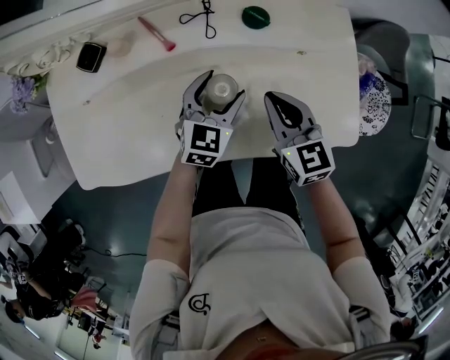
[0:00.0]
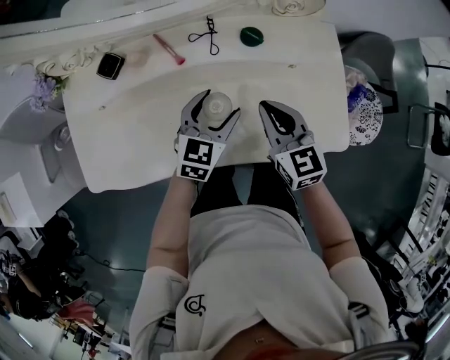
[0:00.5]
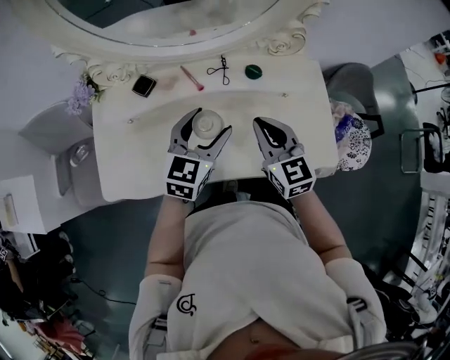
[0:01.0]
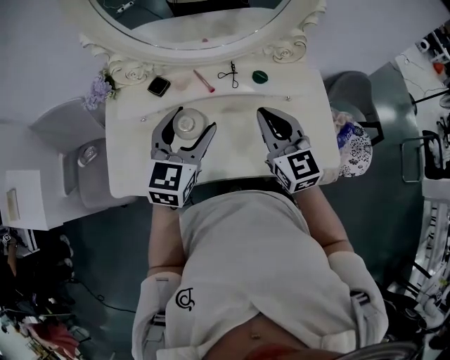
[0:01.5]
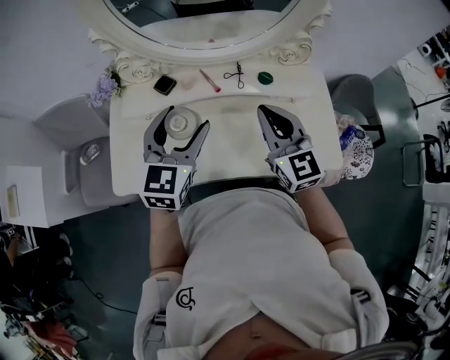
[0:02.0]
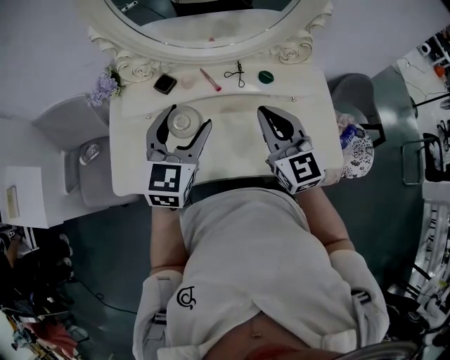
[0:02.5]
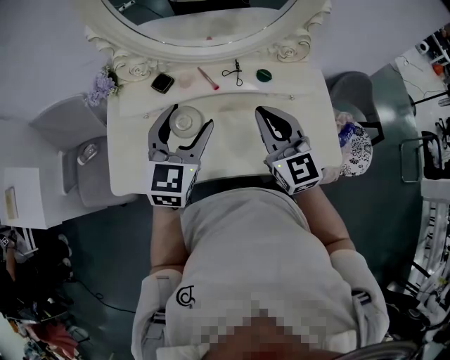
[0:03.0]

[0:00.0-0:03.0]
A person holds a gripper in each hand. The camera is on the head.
0:00.0 to 0:01.5: The left gripper moves upward and to the left, approximately 30 cm; the right gripper heads upward, covering some 20 cm, and changes its angle by about 20 degrees.
0:01.5 to 0:03.0: The grippers make only small movements.

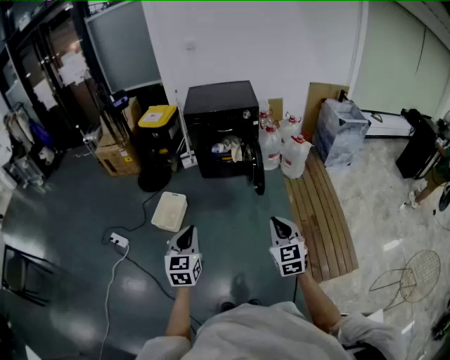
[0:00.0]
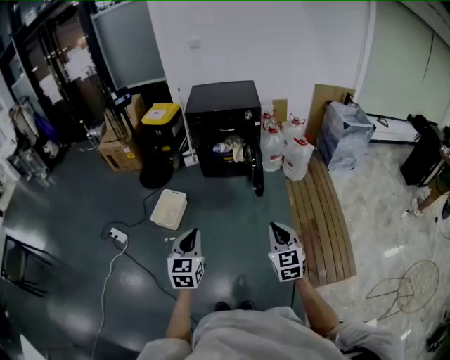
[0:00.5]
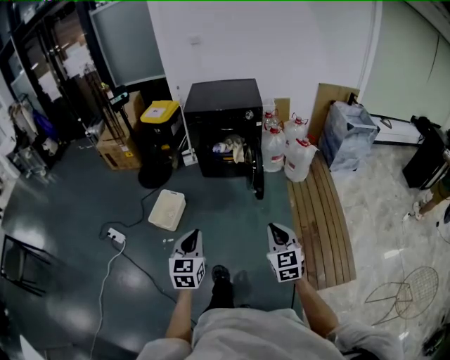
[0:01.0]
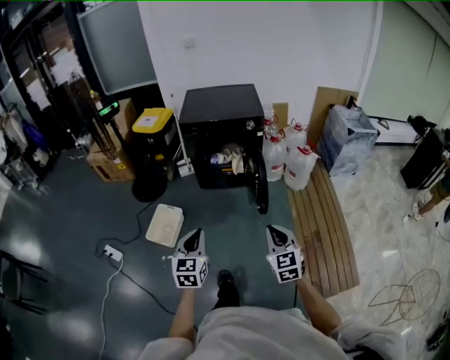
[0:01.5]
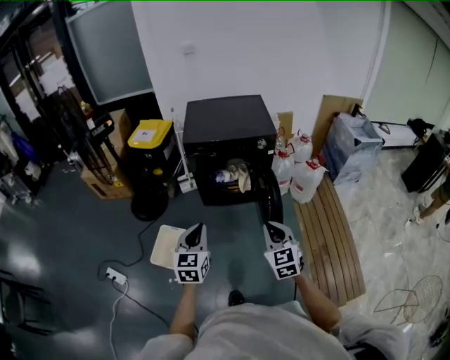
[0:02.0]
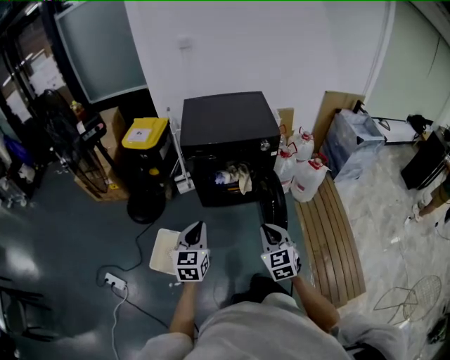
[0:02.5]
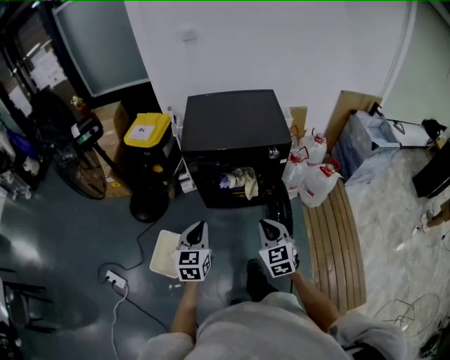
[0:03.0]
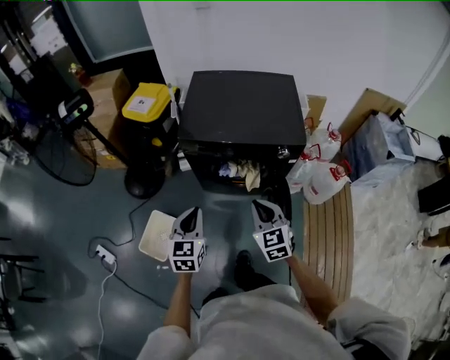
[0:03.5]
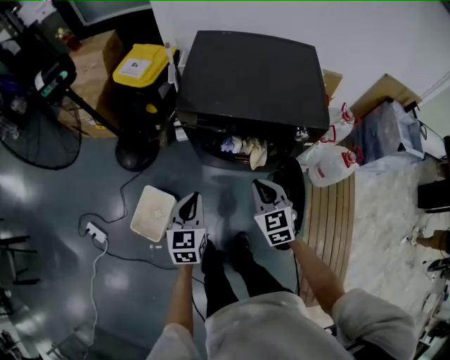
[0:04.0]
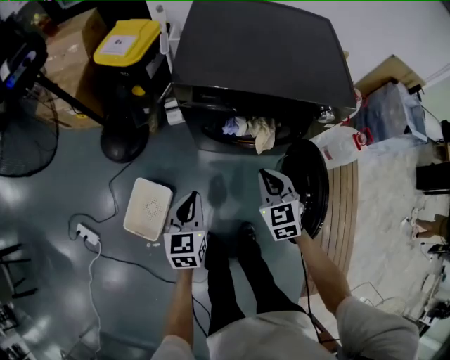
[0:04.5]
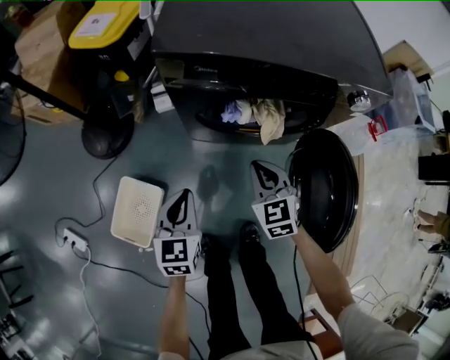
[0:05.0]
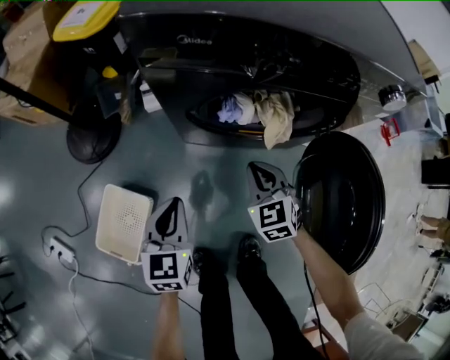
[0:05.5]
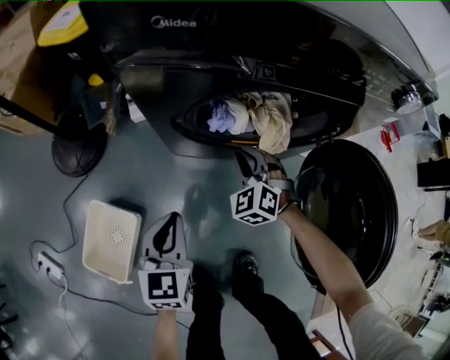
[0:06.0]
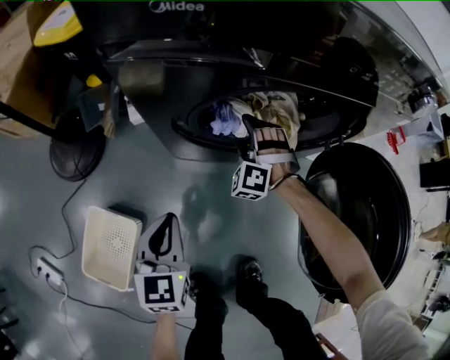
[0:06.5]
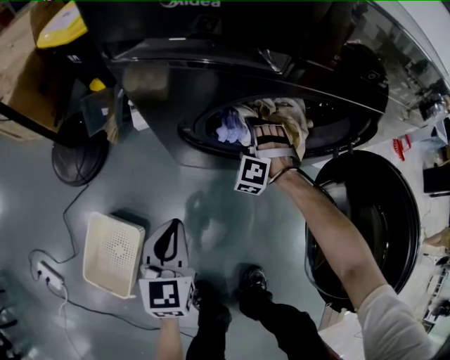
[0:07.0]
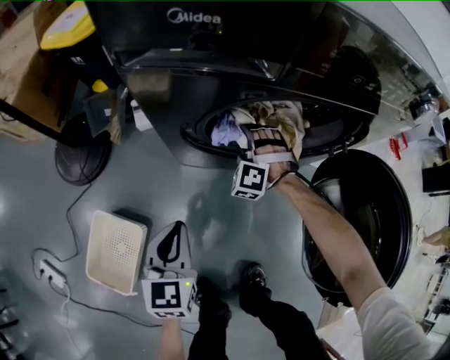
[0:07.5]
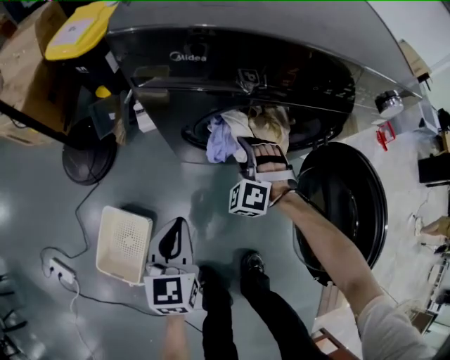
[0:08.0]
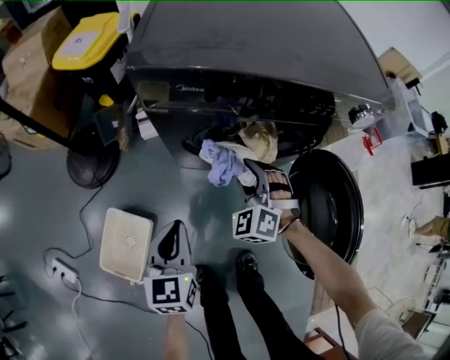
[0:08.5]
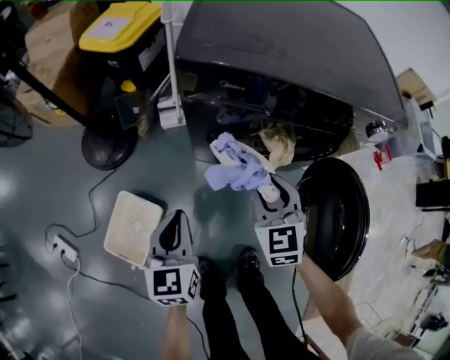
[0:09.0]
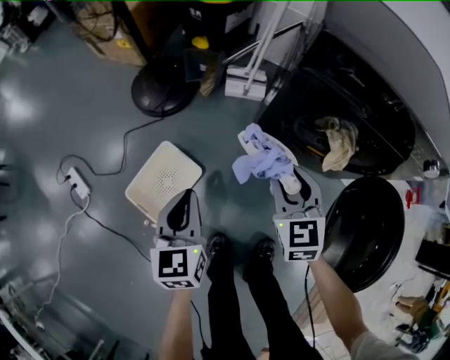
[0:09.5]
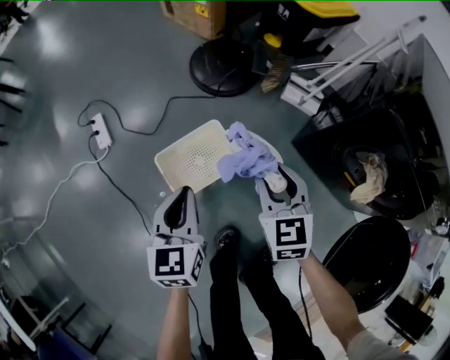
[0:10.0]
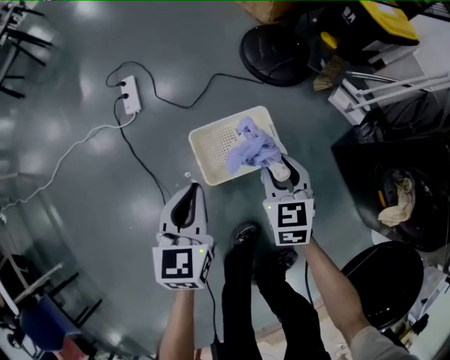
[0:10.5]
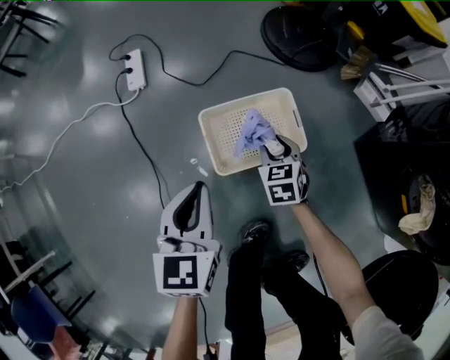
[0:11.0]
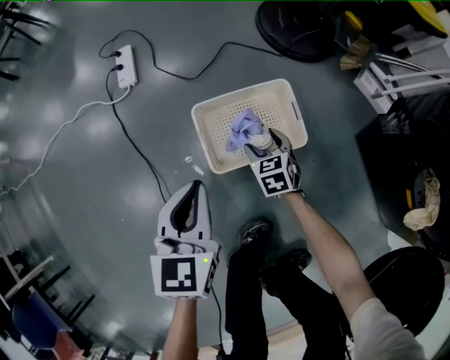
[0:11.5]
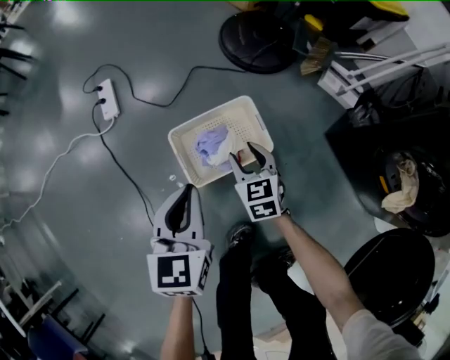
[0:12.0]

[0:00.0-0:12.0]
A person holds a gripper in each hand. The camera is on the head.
0:00.0 to 0:02.0: The grippers both shift forward by approximately 40 cm.
0:02.0 to 0:04.0: The right gripper is displaced forward by some 40 cm. Meanwhile the left gripper is displaced forward and downward by approximately 40 cm.
0:04.0 to 0:06.0: Both grippers move downward, roughly 40 cm. The right gripper swivels roughly 40 degrees.
0:06.0 to 0:08.0: The left gripper is displaced upward by roughly 5 cm. Meanwhile the right gripper rotates about 20 degrees, and opens, then closes again.
0:08.0 to 0:10.0: The right gripper changes place by some 50 cm, and turns by about 60 degrees; the left gripper moves roughly 40 cm, and changes its angle by roughly 40 degrees.
0:10.0 to 0:12.0: The left gripper is displaced downward and to the left by some 15 cm. The right gripper shifts some 30 cm downward and to the left.

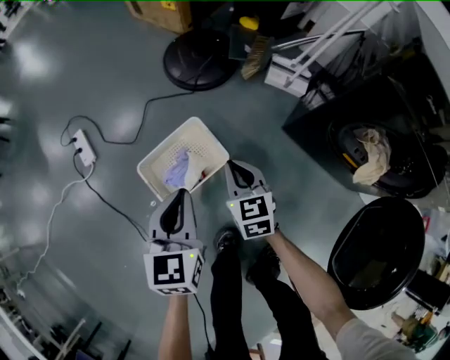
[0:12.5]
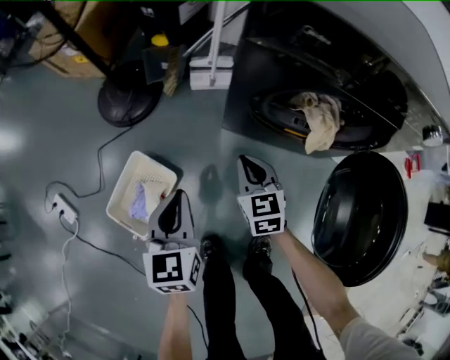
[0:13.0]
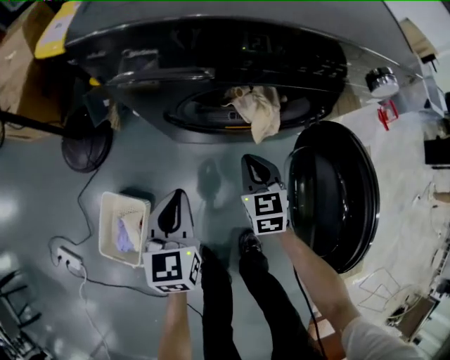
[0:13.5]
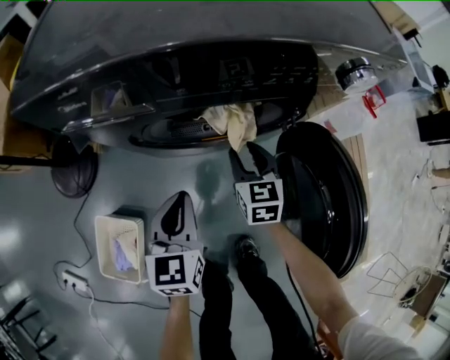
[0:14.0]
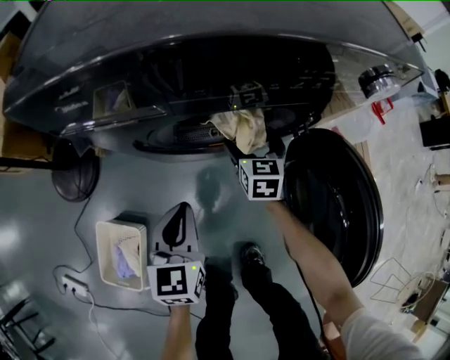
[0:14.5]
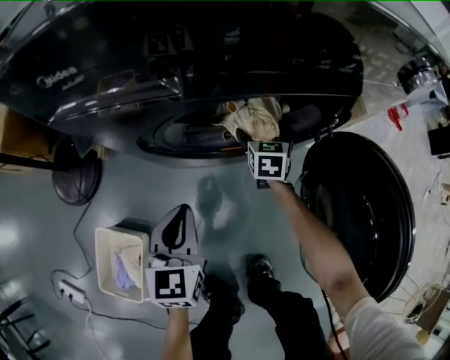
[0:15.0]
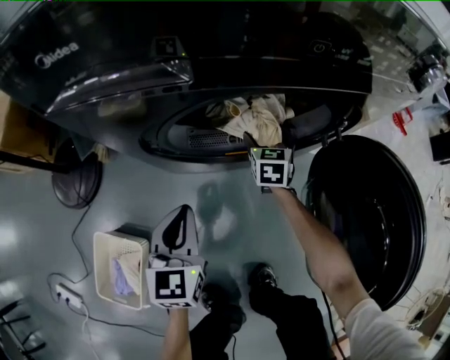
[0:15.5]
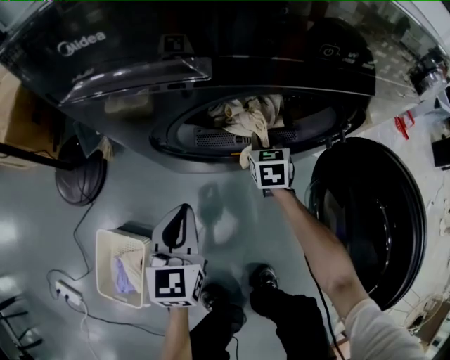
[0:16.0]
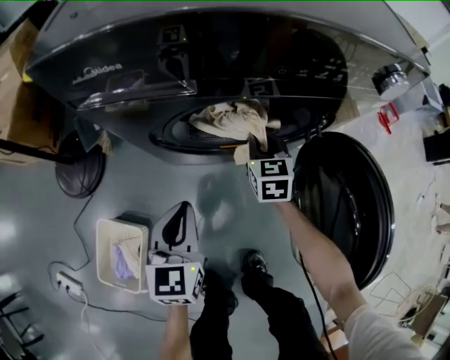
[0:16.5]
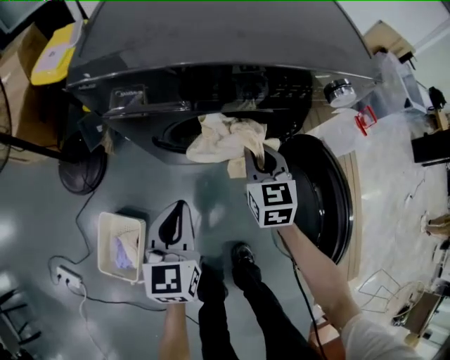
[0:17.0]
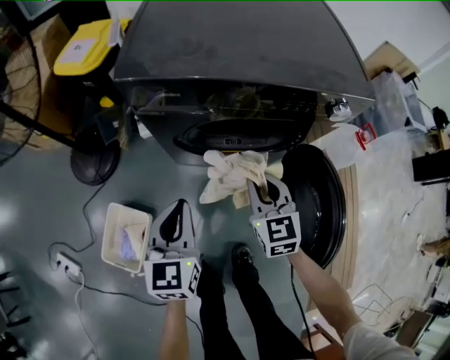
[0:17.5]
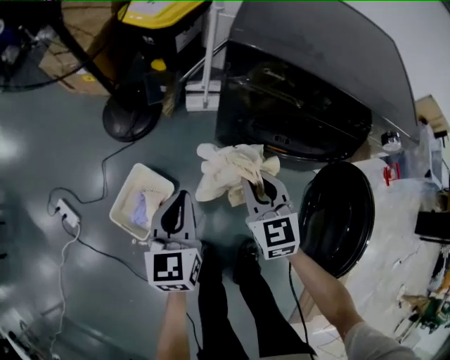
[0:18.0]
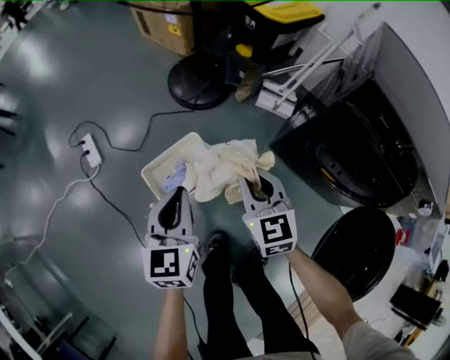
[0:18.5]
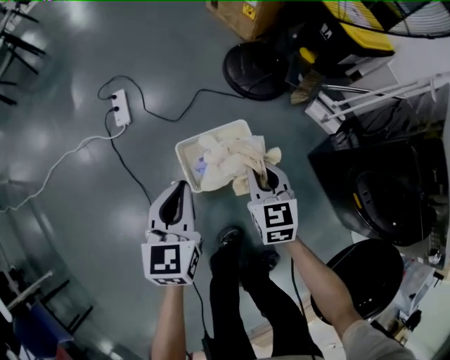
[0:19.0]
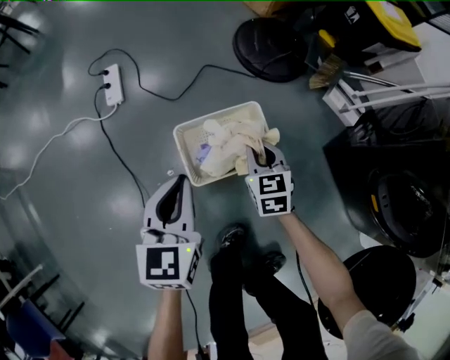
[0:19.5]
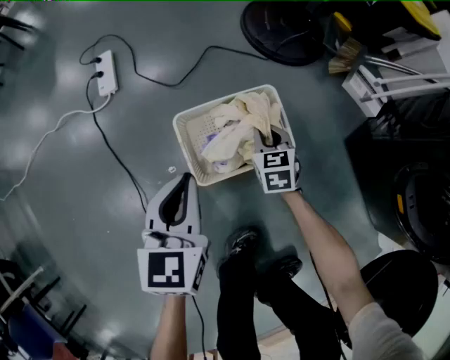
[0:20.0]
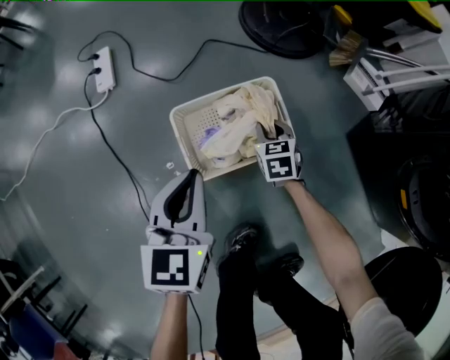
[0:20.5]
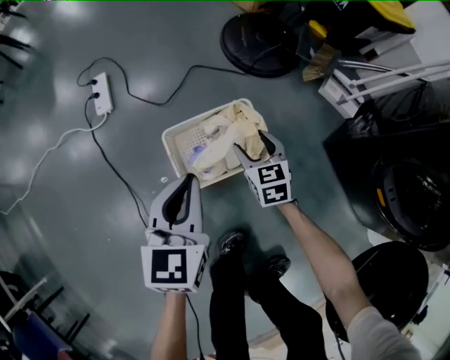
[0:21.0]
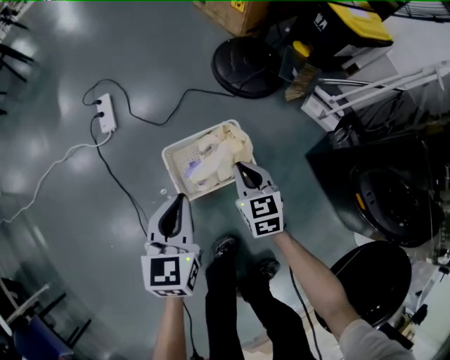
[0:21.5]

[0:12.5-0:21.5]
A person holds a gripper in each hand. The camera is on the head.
0:12.5 to 0:14.5: The pair of grippers is taken some 60 cm. The left gripper rotates some 40 degrees. The right gripper swivels approximately 60 degrees, and opens.
0:14.5 to 0:17.0: The left gripper travels upward by some 10 cm; the right gripper is displaced upward and backward by some 20 cm, and closes its fingers.
0:17.0 to 0:19.5: Both grippers are carried roughly 70 cm. The right gripper rotates approximately 70 degrees. Meanwhile the left gripper rotates about 60 degrees.
0:19.5 to 0:21.5: The right gripper reaches roughly 20 cm downward, then returns, and opens and closes again. The left gripper goes downward and returns, about 10 cm each way.

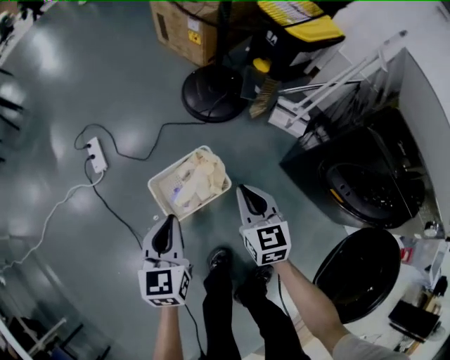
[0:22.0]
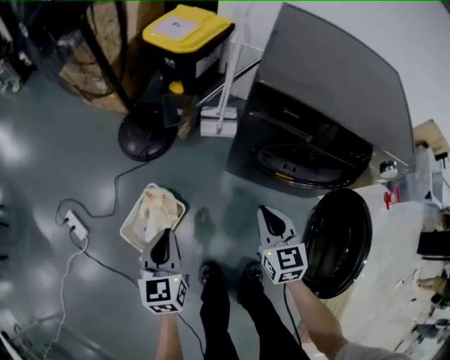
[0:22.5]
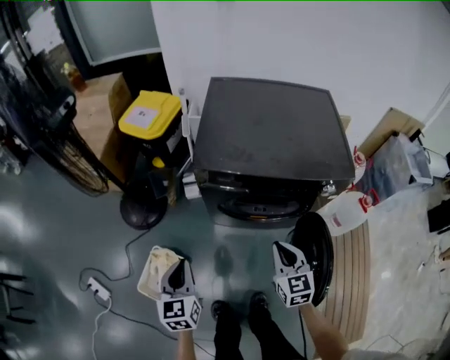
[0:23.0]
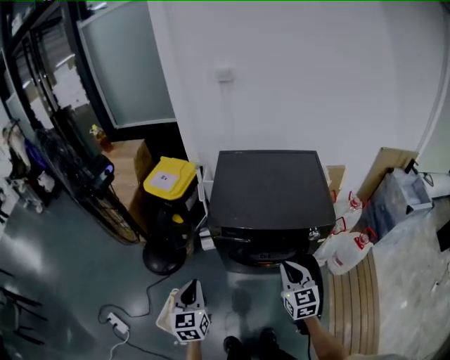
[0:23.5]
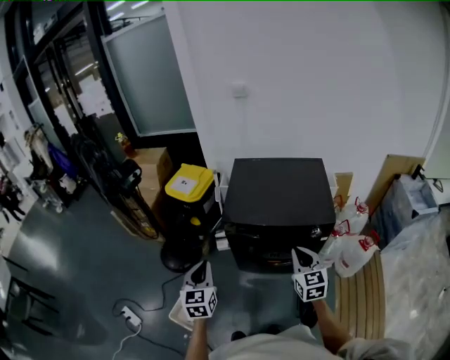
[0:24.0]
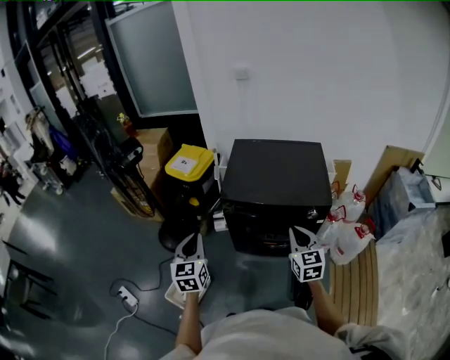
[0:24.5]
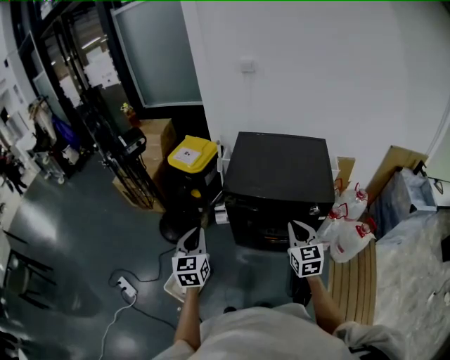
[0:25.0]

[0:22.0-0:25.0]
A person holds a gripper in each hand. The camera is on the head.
0:22.0 to 0:23.5: The left gripper is displaced upward by approximately 40 cm, and changes its angle by approximately 40 degrees. Meanwhile the right gripper ends up approximately 60 cm from where it was, and swivels about 40 degrees.
0:23.5 to 0:25.0: Both grippers move upward, roughly 10 cm.
